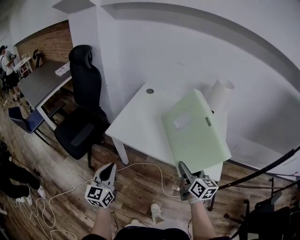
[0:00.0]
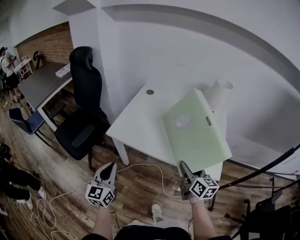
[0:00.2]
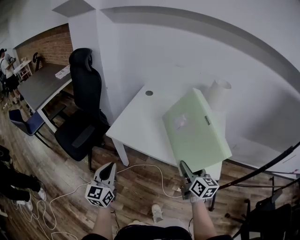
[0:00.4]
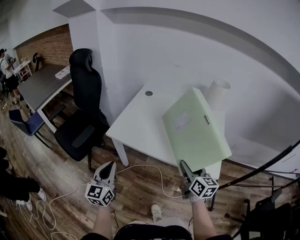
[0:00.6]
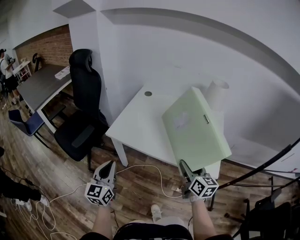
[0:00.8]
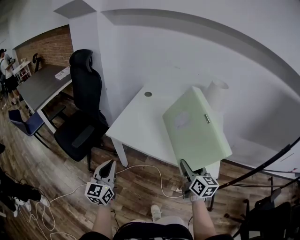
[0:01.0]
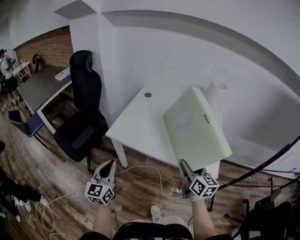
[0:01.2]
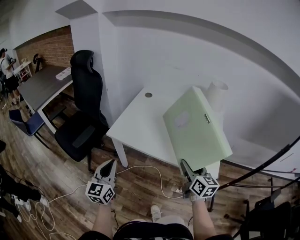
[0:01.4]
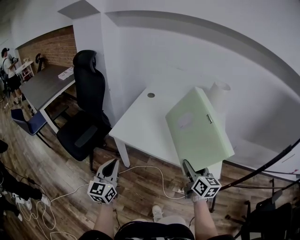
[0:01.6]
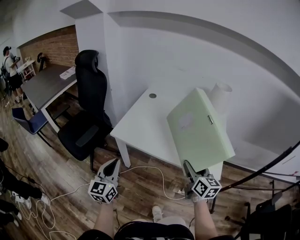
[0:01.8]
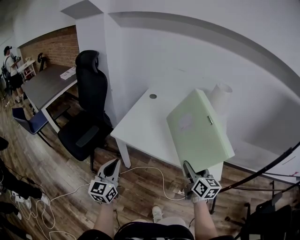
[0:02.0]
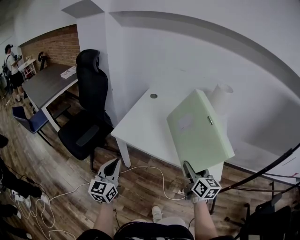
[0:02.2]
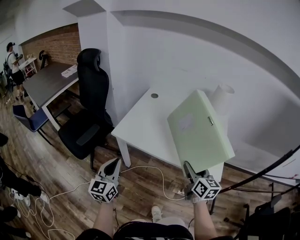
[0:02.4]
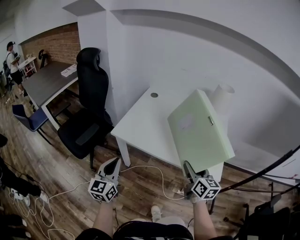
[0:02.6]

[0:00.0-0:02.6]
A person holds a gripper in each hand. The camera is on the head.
0:00.0 to 0:01.2: There are only small adjustments of the grippers.
0:01.2 to 0:02.6: Neither gripper changes place.

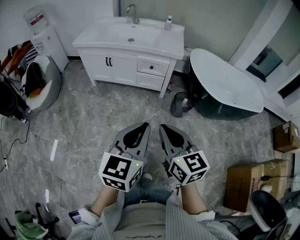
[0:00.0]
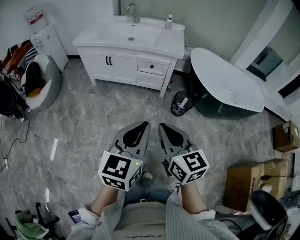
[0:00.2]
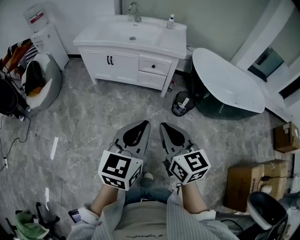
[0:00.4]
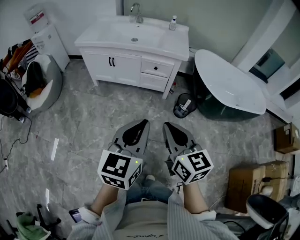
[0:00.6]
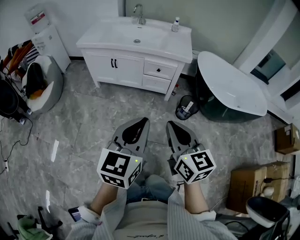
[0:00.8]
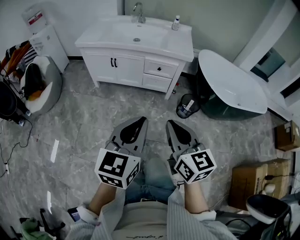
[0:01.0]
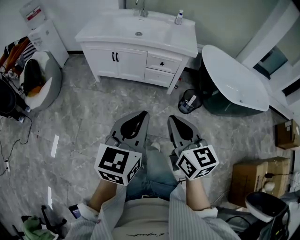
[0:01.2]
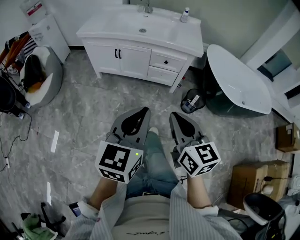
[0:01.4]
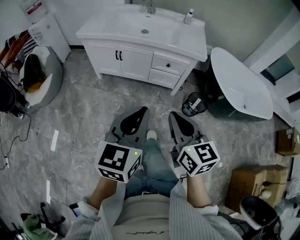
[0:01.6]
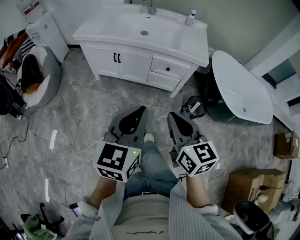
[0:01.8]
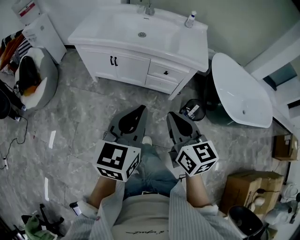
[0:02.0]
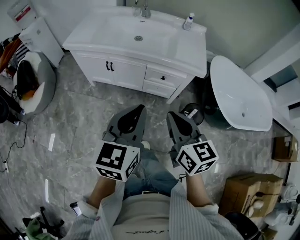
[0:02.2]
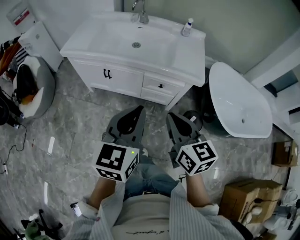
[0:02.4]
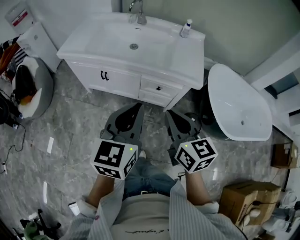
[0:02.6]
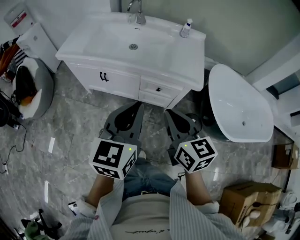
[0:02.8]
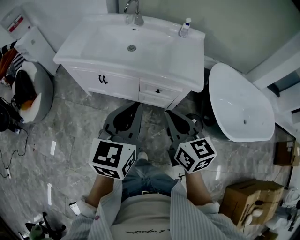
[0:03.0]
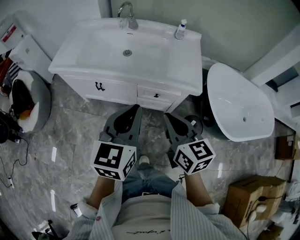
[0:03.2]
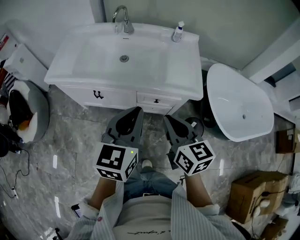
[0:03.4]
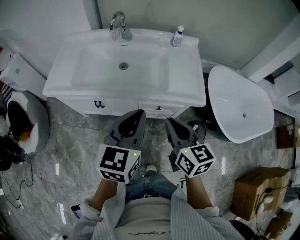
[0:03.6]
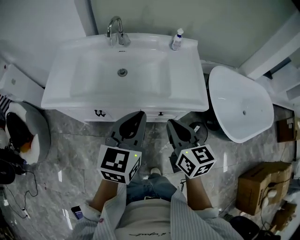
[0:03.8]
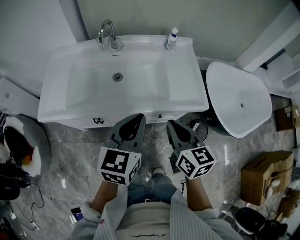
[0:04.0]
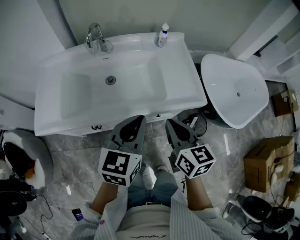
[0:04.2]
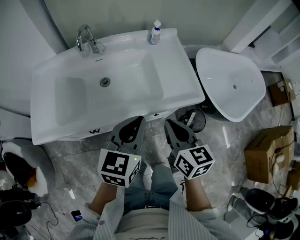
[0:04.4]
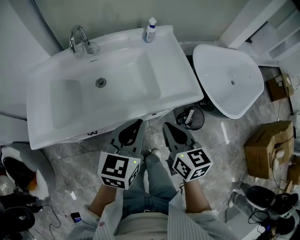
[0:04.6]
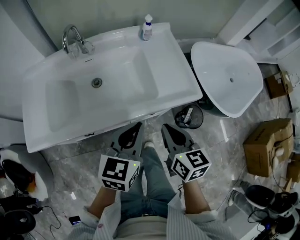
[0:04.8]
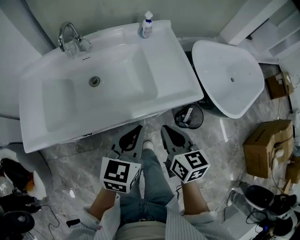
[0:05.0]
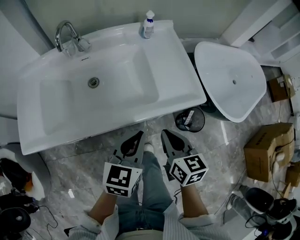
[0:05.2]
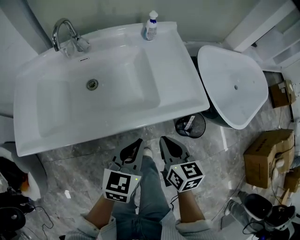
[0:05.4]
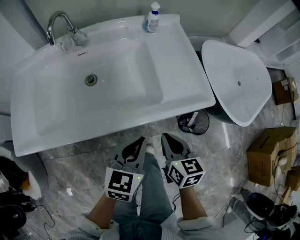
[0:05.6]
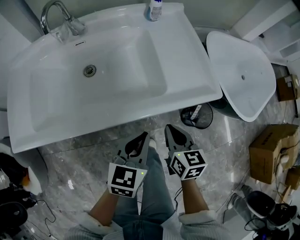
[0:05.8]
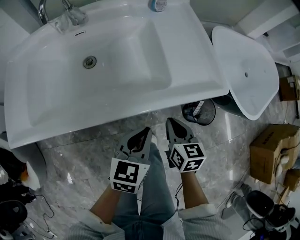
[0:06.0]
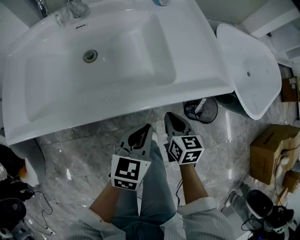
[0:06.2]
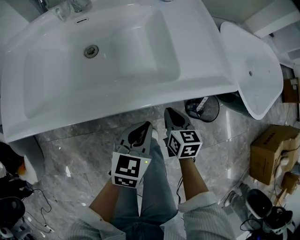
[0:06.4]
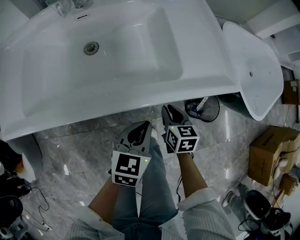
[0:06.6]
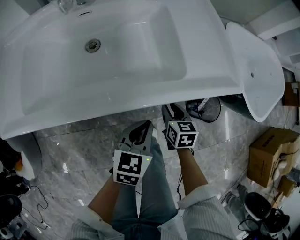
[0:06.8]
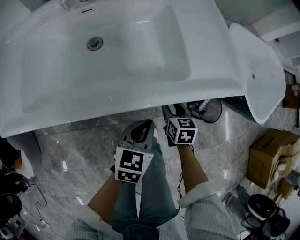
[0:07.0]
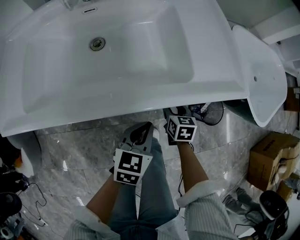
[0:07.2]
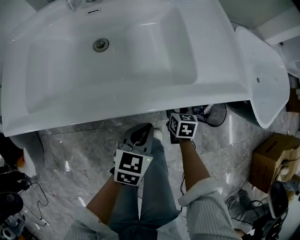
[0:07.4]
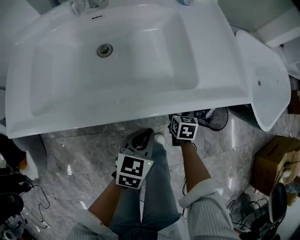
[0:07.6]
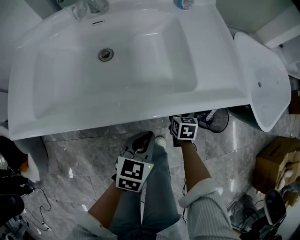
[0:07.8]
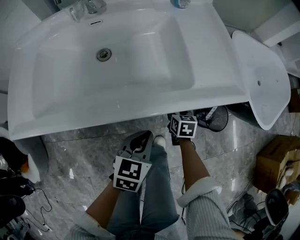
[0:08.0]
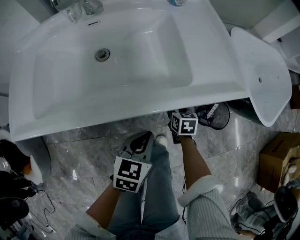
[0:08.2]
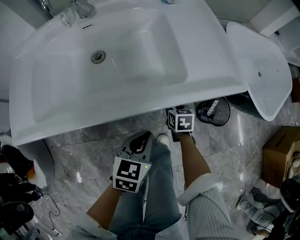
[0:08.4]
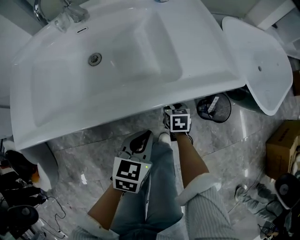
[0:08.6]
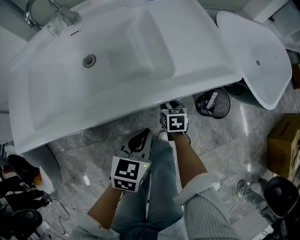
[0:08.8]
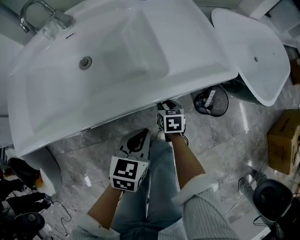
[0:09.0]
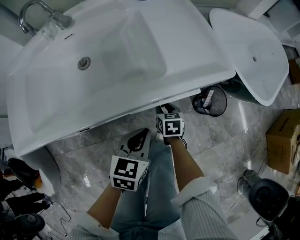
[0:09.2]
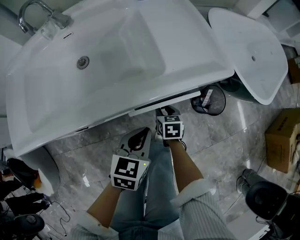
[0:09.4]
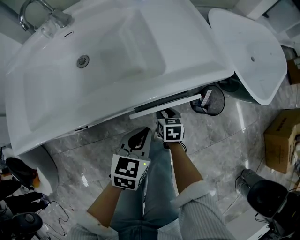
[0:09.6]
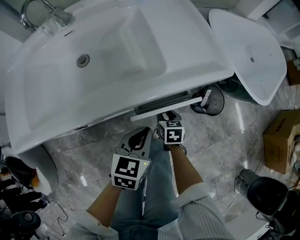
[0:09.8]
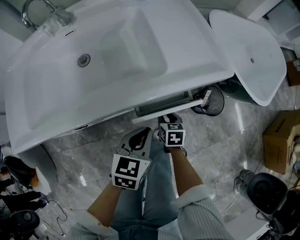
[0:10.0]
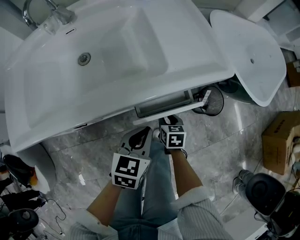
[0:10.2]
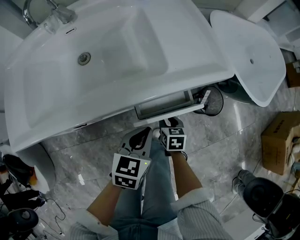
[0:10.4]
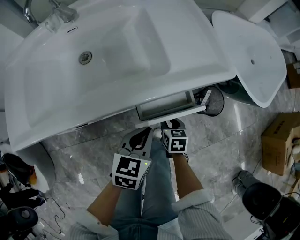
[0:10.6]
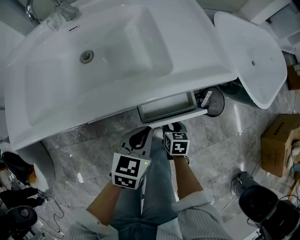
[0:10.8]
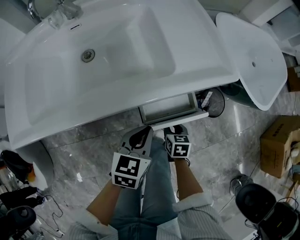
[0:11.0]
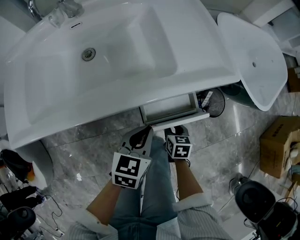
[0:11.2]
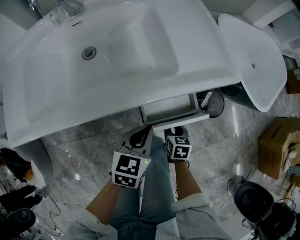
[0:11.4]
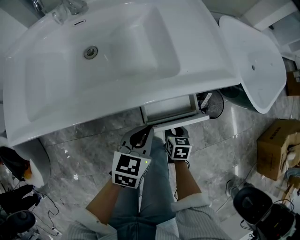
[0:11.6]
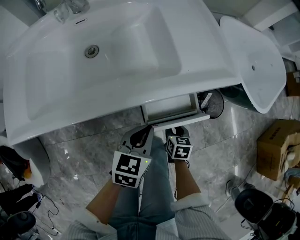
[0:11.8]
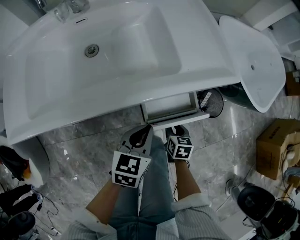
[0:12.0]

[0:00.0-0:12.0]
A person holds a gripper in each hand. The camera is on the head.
0:00.0 to 0:01.6: Both grippers travel together forward and to the left, approximately 20 cm.
0:01.6 to 0:03.0: The two grippers go roughly 25 cm forward.
0:03.0 to 0:04.4: The left gripper shifts by some 20 cm, and changes its angle by approximately 30 degrees; the right gripper changes place by roughly 20 cm, and swivels roughly 30 degrees.
0:04.4 to 0:06.0: Both grippers move downward, approximately 25 cm.
0:06.0 to 0:07.6: The right gripper goes about 20 cm downward and forward, and opens its fingers, while the left gripper shifts about 10 cm downward.
0:07.6 to 0:09.0: The grippers make only small movements.
0:09.0 to 0:10.4: The right gripper goes some 10 cm backward.
0:10.4 to 0:12.0: The grippers make only small movements.

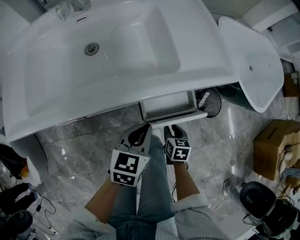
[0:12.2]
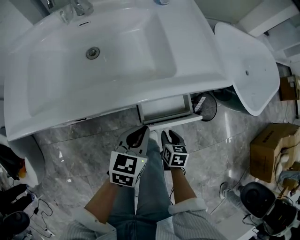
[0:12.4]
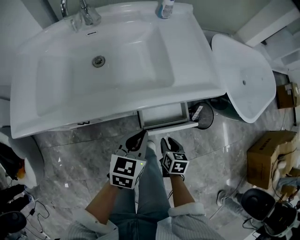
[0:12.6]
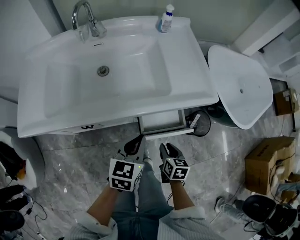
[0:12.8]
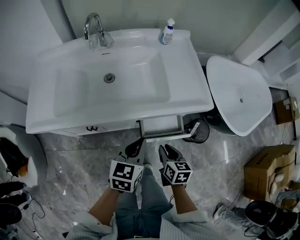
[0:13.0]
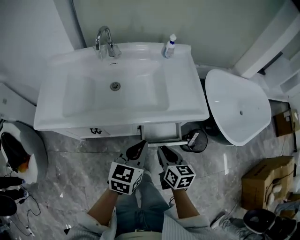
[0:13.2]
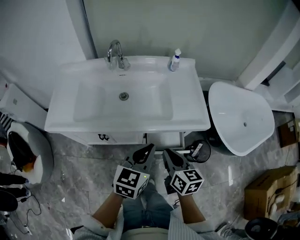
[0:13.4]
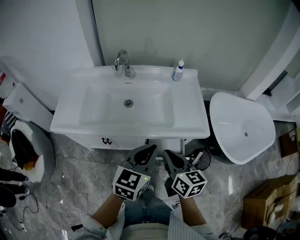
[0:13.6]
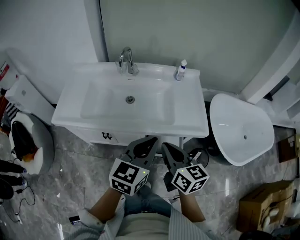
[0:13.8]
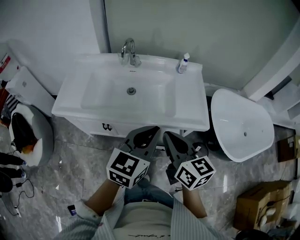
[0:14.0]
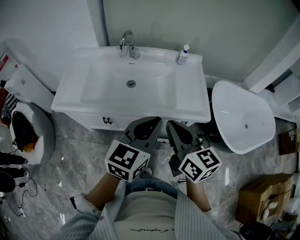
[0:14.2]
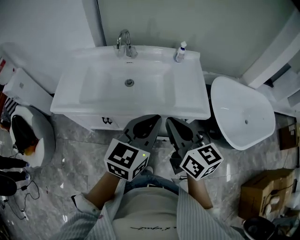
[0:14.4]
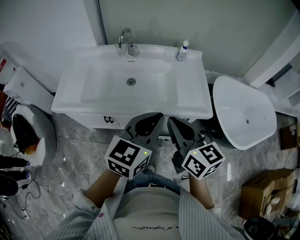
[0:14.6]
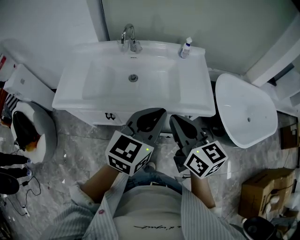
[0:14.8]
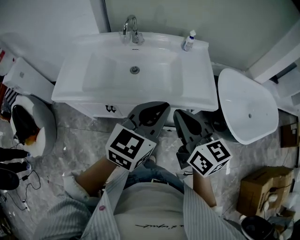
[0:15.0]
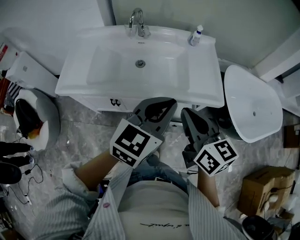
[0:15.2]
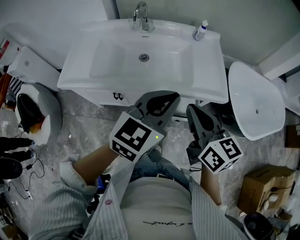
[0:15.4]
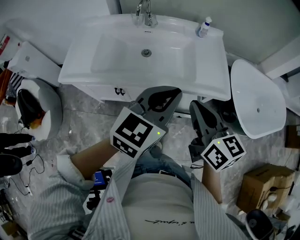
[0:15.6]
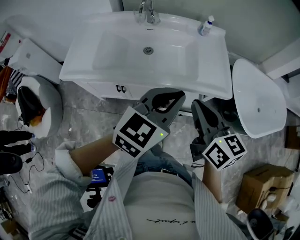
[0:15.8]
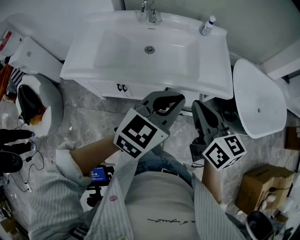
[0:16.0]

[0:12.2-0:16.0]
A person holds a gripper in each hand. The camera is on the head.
0:12.2 to 0:13.4: The right gripper travels upward by approximately 35 cm, turns by roughly 30 degrees, and closes its fingers; the left gripper is displaced upward by approximately 25 cm.
0:13.4 to 0:14.8: Both grippers move upward, some 15 cm.
0:14.8 to 0:16.0: The grippers make only small movements.

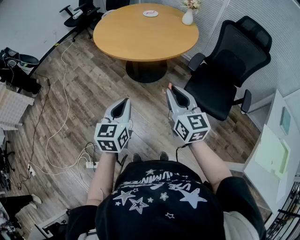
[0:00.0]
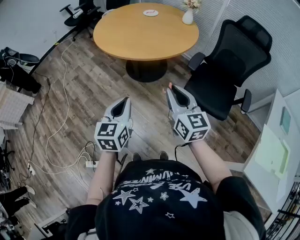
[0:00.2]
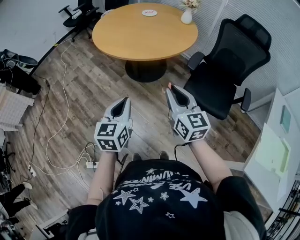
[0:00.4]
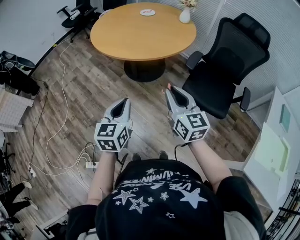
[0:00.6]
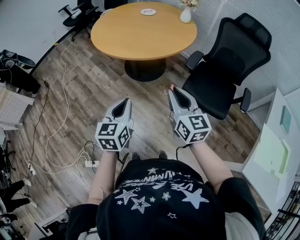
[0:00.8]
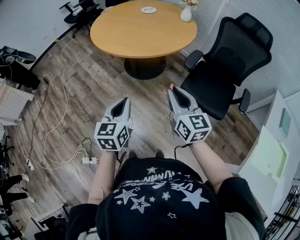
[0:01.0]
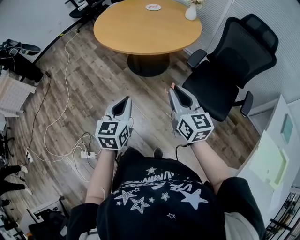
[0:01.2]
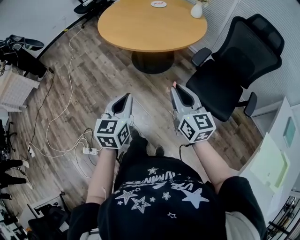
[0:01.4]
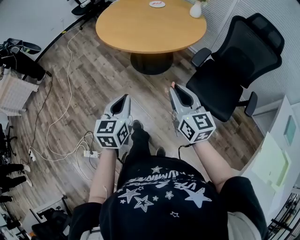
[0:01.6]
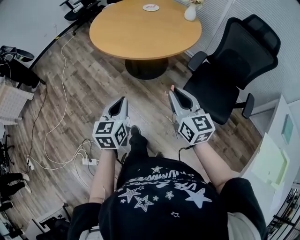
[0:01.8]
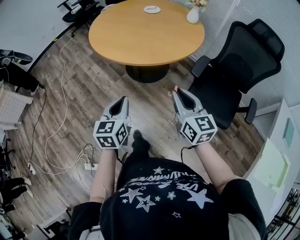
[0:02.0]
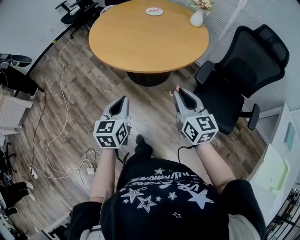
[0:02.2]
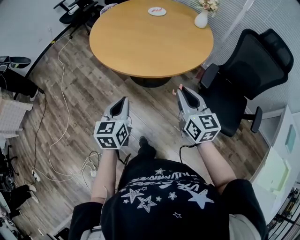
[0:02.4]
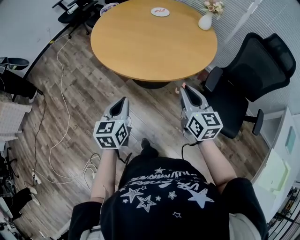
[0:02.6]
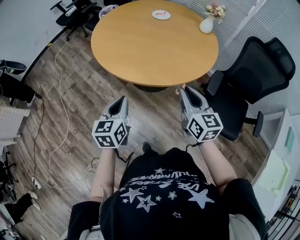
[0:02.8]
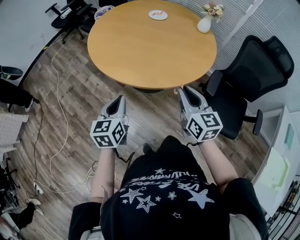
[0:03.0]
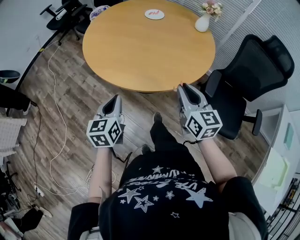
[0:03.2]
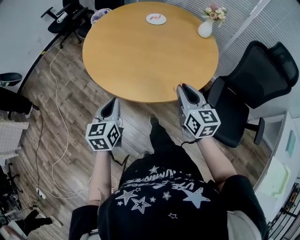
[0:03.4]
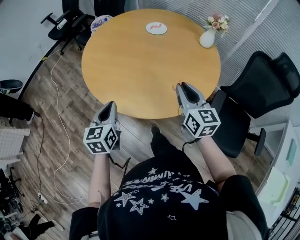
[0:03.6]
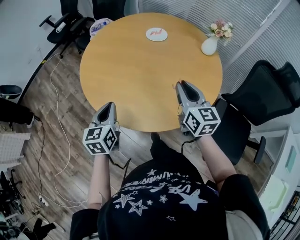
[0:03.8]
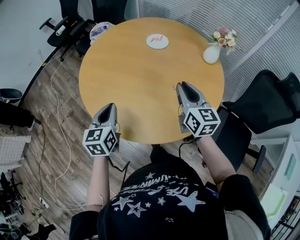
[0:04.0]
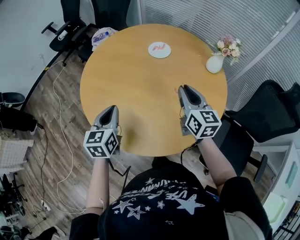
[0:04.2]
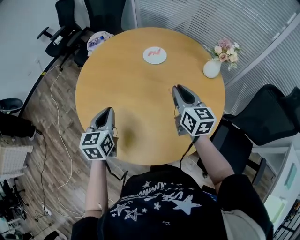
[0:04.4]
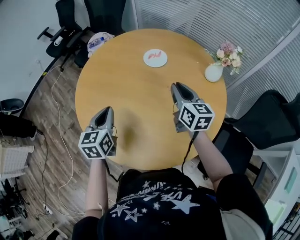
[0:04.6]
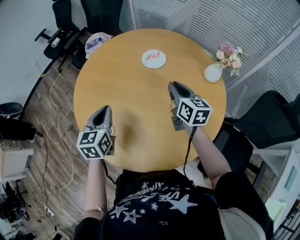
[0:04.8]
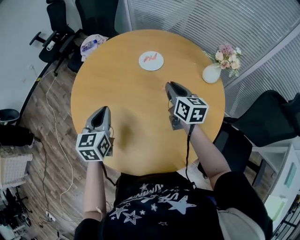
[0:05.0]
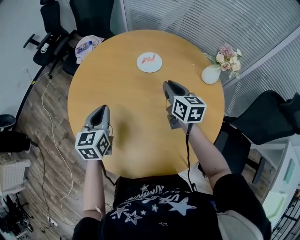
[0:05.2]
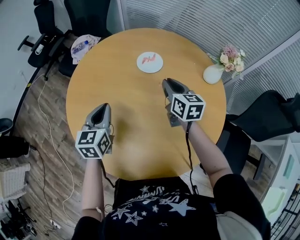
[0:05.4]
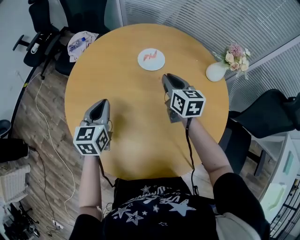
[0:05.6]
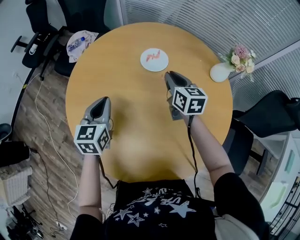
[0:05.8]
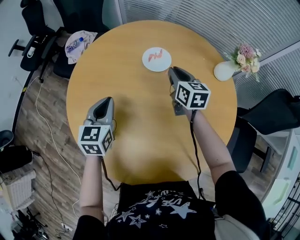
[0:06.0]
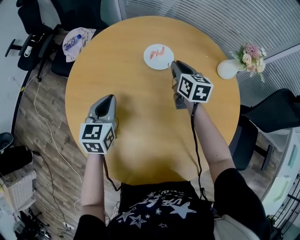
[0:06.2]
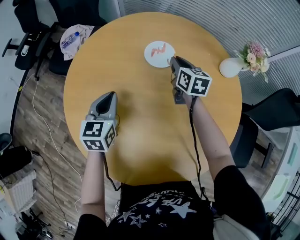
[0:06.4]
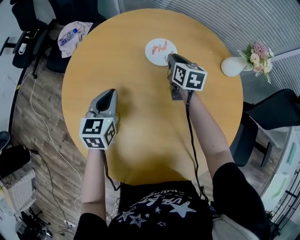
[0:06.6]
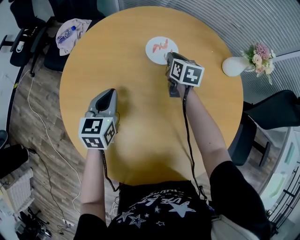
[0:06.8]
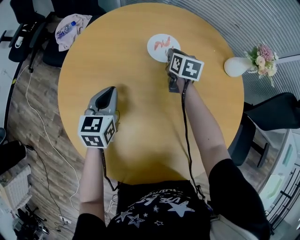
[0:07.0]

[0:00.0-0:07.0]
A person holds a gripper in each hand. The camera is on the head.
0:00.0 to 0:01.4: The two grippers go approximately 5 cm to the right.
0:01.4 to 0:02.8: The left gripper heads forward and to the left, covering some 35 cm; the right gripper heads forward, covering approximately 30 cm.
0:02.8 to 0:04.2: Both grippers move forward, about 35 cm.
0:04.2 to 0:05.6: The two grippers go roughly 20 cm forward.
0:05.6 to 0:07.0: The left gripper goes some 15 cm forward and downward. Meanwhile the right gripper travels forward and downward by roughly 20 cm, and rotates roughly 20 degrees.
